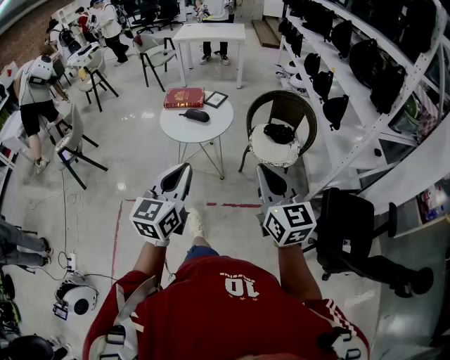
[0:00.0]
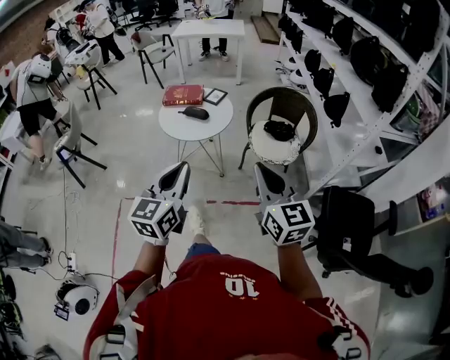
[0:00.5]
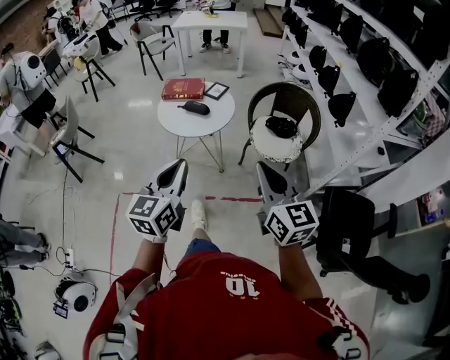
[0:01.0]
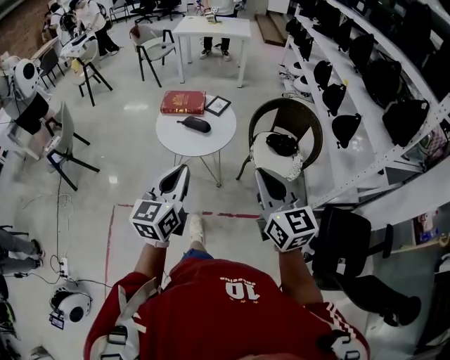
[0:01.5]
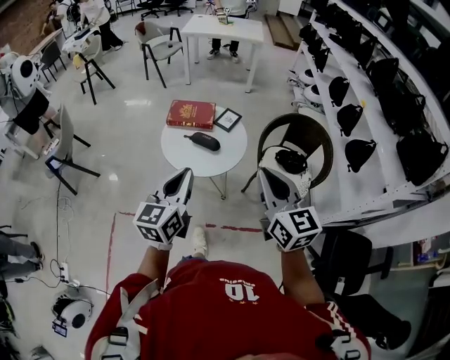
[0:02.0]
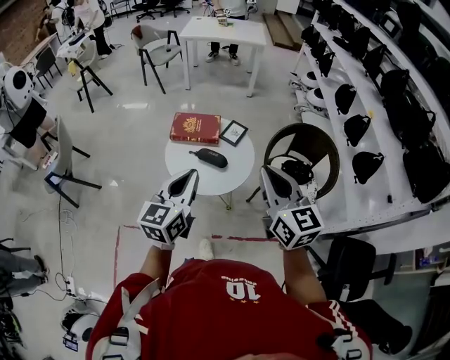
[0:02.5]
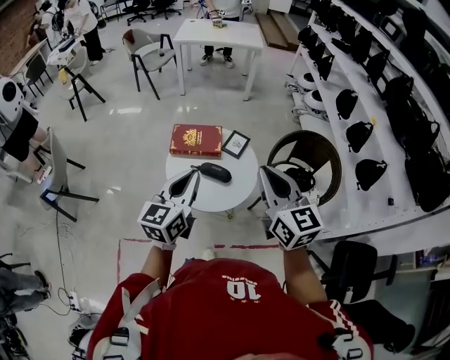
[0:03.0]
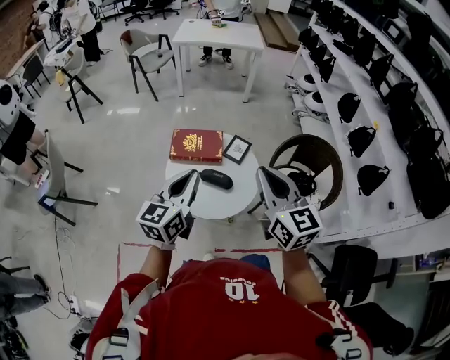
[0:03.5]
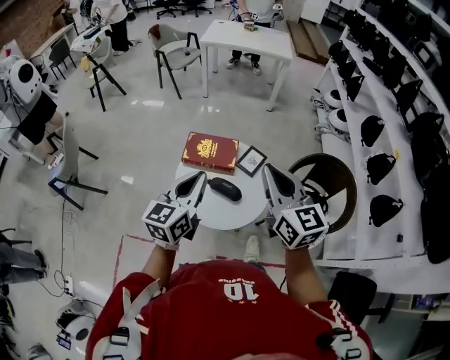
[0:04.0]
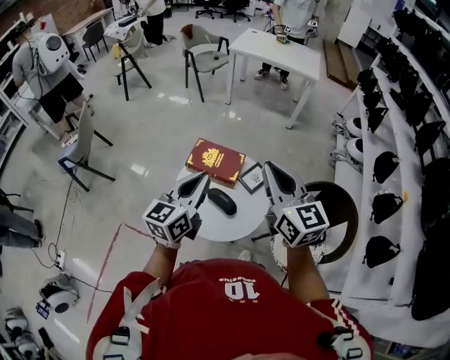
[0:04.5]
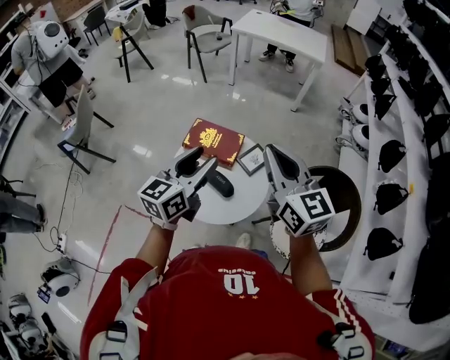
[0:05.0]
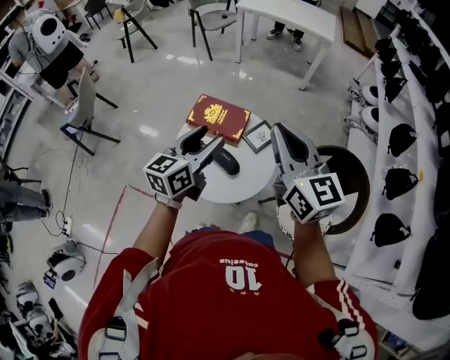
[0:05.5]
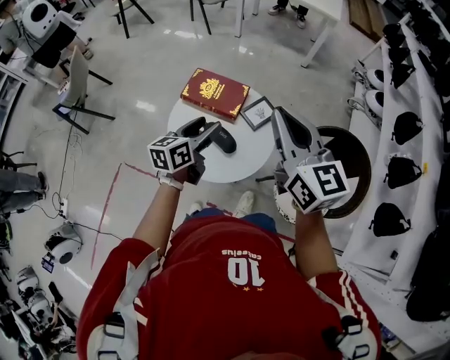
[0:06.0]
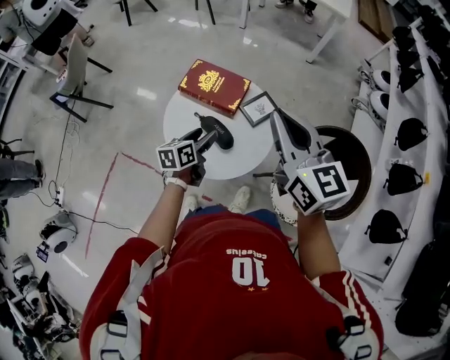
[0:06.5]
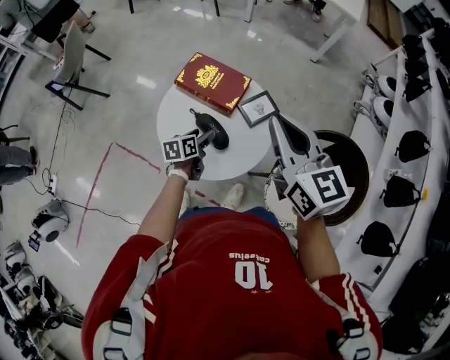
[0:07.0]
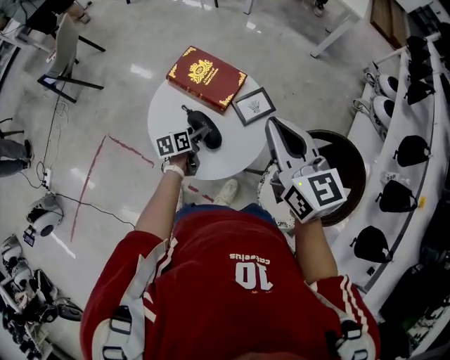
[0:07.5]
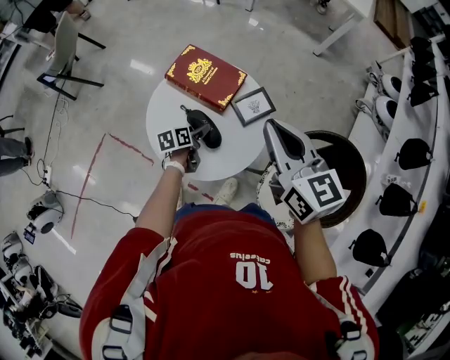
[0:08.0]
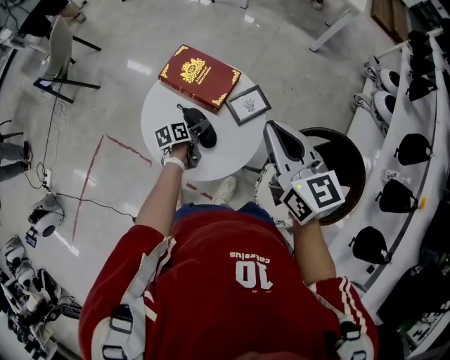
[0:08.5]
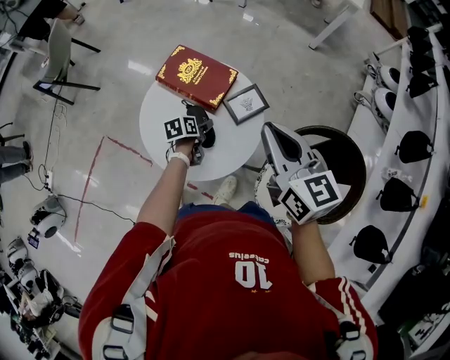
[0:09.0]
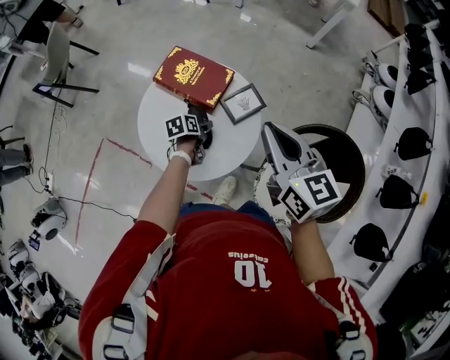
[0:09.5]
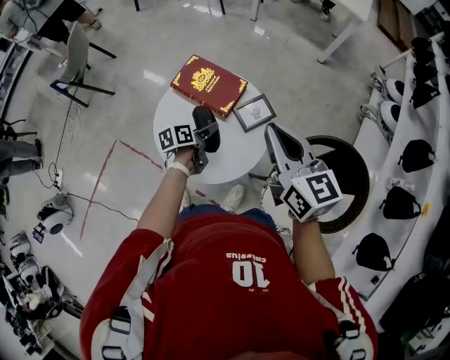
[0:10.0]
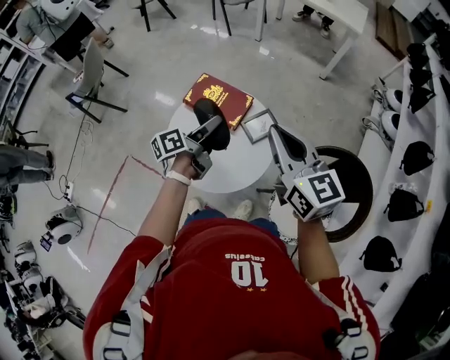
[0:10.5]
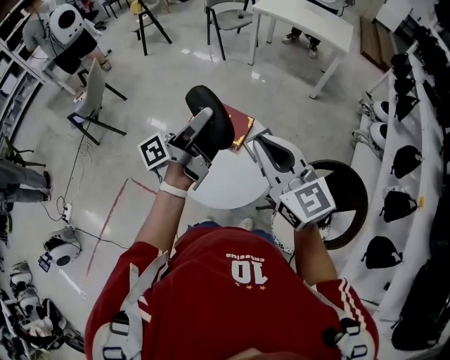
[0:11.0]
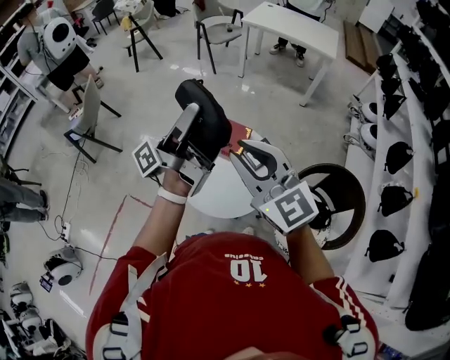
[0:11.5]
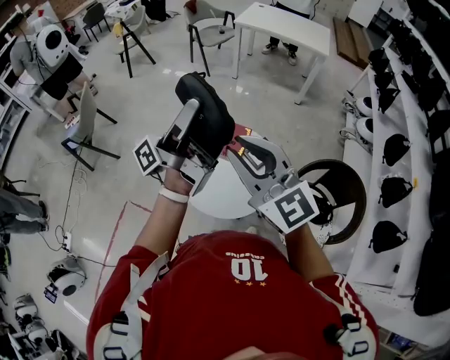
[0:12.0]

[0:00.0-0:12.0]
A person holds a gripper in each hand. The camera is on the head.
0:00.0 to 0:02.0: Both grippers move forward, about 30 cm.
0:02.0 to 0:04.0: The two grippers go about 30 cm forward.
0:04.0 to 0:06.0: The right gripper goes approximately 10 cm to the right and forward, while the left gripper travels downward, to the right and forward by approximately 20 cm, swivels about 20 degrees, and opens up.
0:06.0 to 0:08.0: The right gripper is displaced downward and forward by approximately 15 cm; the left gripper travels downward by roughly 30 cm, and rotates approximately 40 degrees.
0:08.0 to 0:10.0: The left gripper goes roughly 10 cm upward.
0:10.0 to 0:12.0: The right gripper goes roughly 25 cm to the left and upward, and changes its angle by roughly 30 degrees. Meanwhile the left gripper shifts some 50 cm upward, and tips its fingers upward by about 80 degrees.

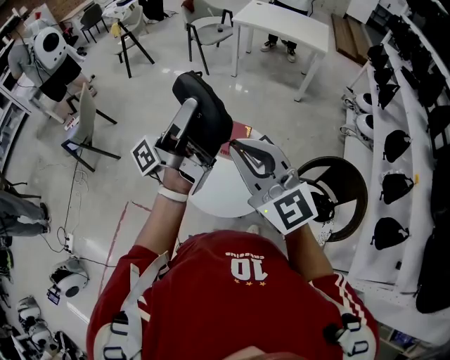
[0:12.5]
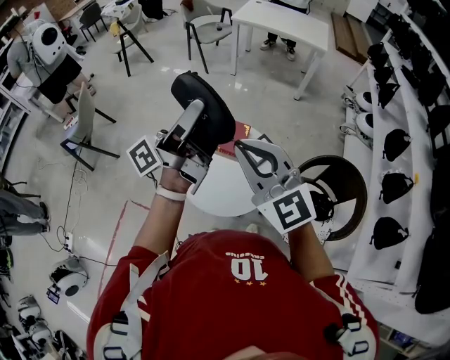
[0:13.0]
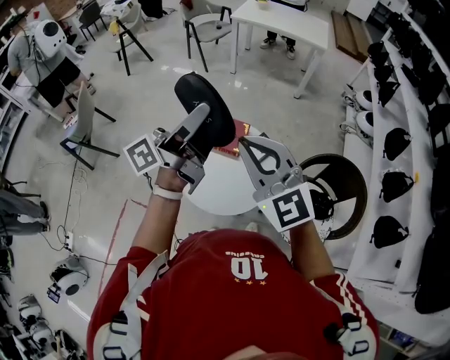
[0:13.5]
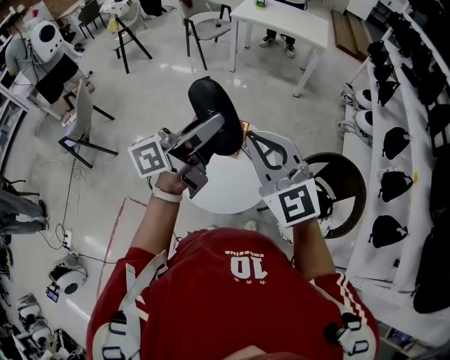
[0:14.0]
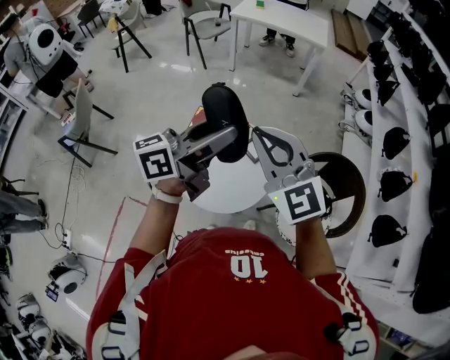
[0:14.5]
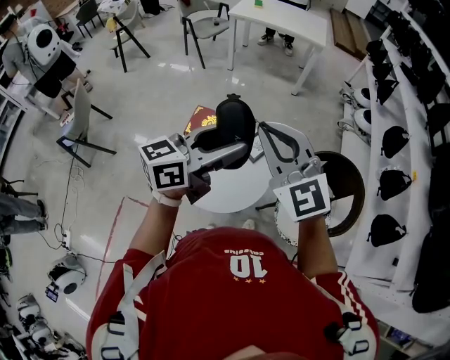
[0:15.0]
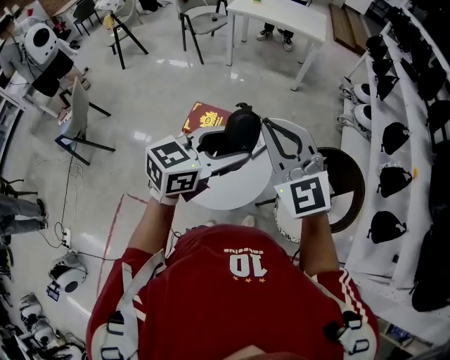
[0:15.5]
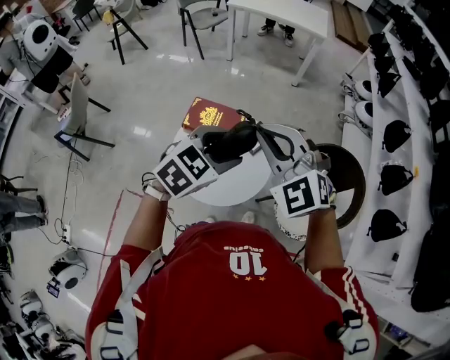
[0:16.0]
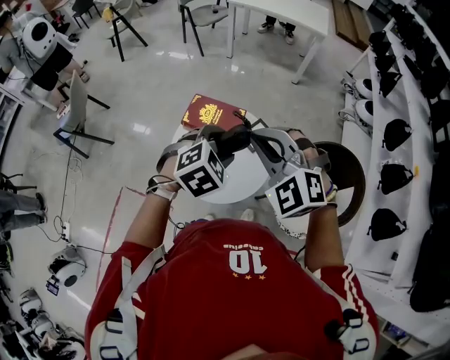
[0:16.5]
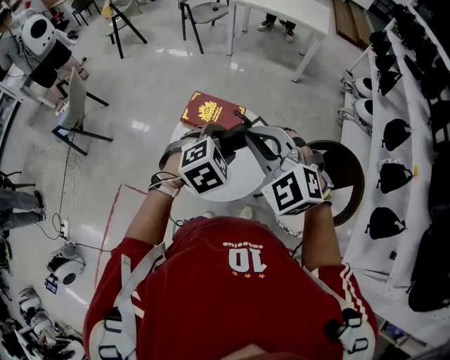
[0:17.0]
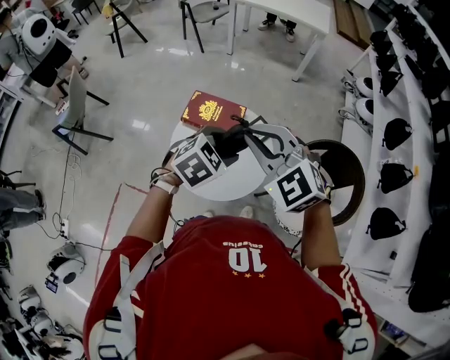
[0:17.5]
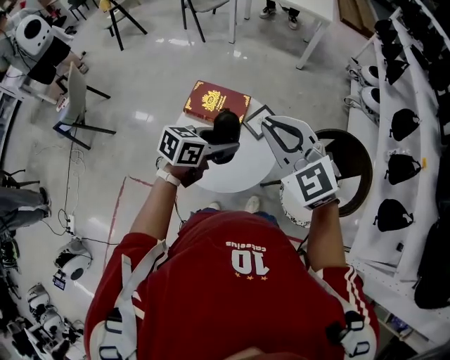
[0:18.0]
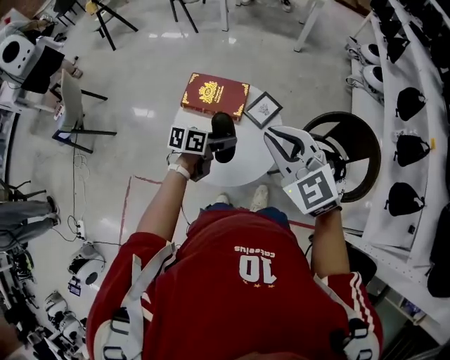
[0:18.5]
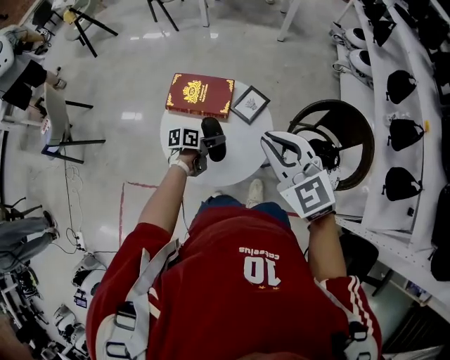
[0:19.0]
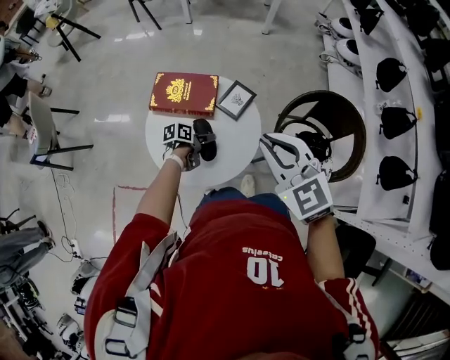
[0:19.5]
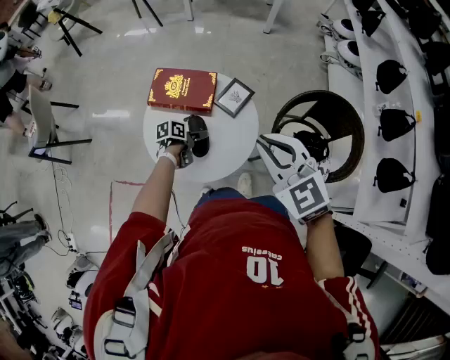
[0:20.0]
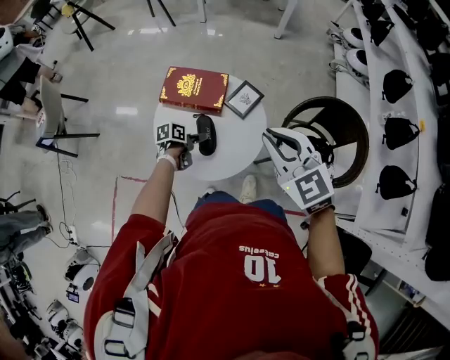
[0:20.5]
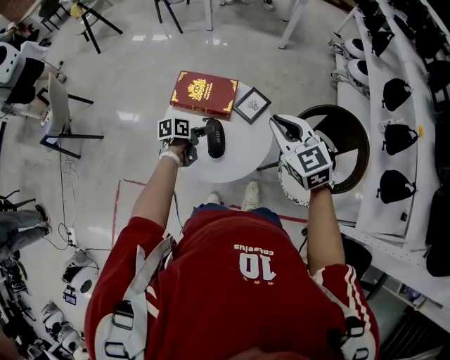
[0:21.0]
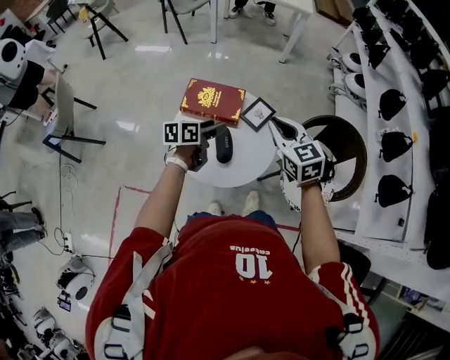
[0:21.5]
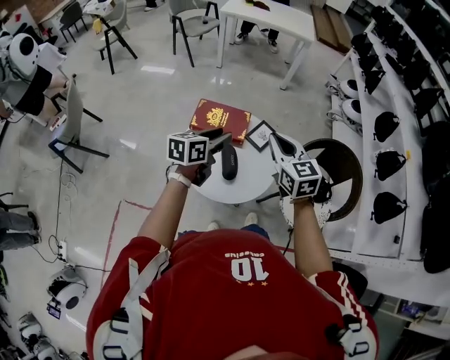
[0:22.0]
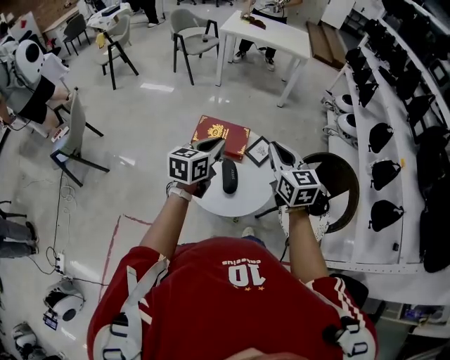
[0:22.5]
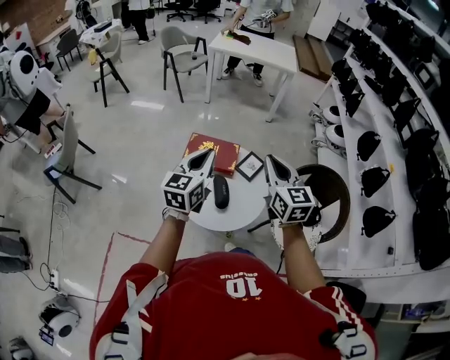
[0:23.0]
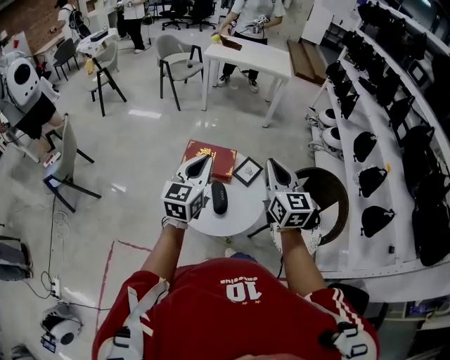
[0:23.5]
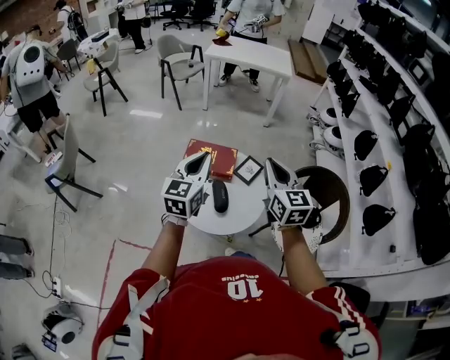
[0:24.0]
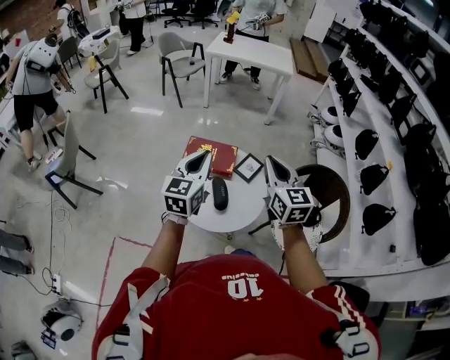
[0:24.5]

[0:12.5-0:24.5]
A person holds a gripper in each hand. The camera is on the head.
0:12.5 to 0:14.5: Both grippers move to the right, approximately 5 cm. The left gripper changes its angle by about 40 degrees.
0:14.5 to 0:16.5: The right gripper heads downward, covering some 5 cm, and rotates some 40 degrees. The left gripper travels downward by approximately 15 cm, and angles its fingers downward, by about 60 degrees.
0:16.5 to 0:18.5: The left gripper goes about 20 cm downward, and rotates around the line of its fingers by some 60 degrees, counterclockwise from behind; the right gripper shifts approximately 5 cm downward, and swivels some 30 degrees.
0:18.5 to 0:20.5: The right gripper heads to the right, covering roughly 5 cm, while the left gripper travels downward by some 15 cm, and rotates about 30 degrees.
0:20.5 to 0:22.5: The right gripper is displaced to the left by roughly 10 cm, and swivels some 30 degrees; the left gripper moves upward, approximately 35 cm, tips its fingers upward by approximately 30 degrees, and closes up.
0:22.5 to 0:24.5: The right gripper moves some 5 cm, while the left gripper heads upward, covering some 5 cm, and turns by roughly 20 degrees.

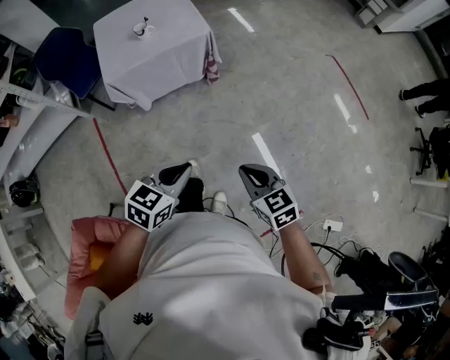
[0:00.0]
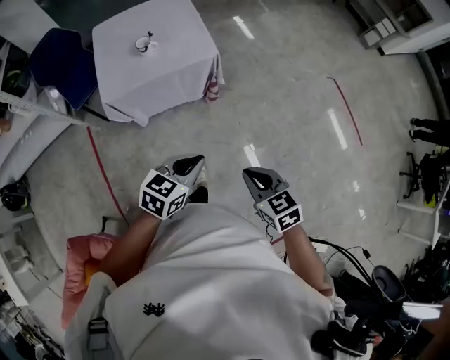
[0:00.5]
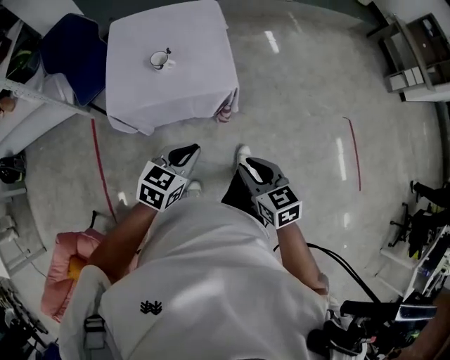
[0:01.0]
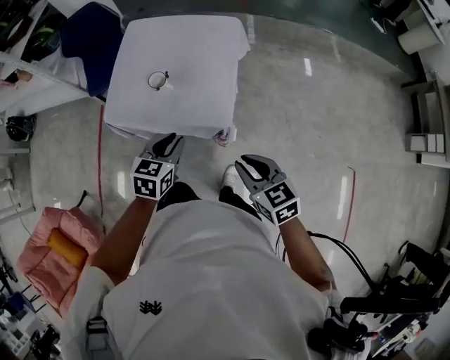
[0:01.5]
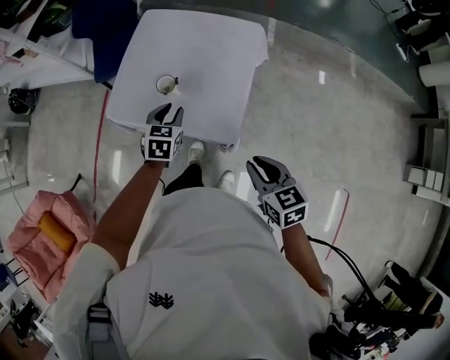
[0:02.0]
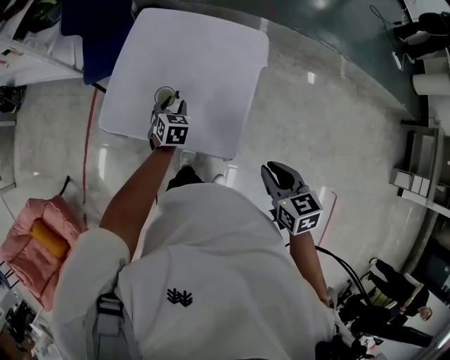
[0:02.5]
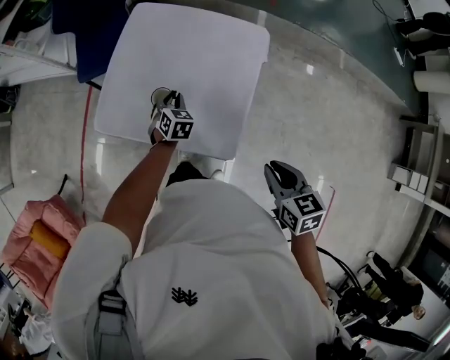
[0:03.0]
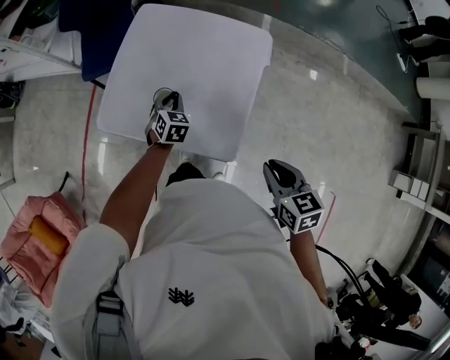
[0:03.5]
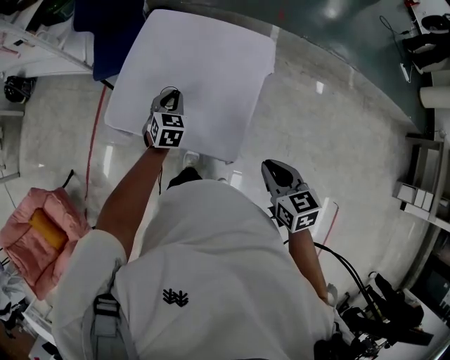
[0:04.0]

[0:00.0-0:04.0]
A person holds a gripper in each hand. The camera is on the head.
0:00.0 to 0:02.0: Both grippers are carried roughly 70 cm. The right gripper swivels about 30 degrees. The left gripper turns by roughly 60 degrees, and opens.
0:02.0 to 0:04.0: The two grippers go about 10 cm forward.
